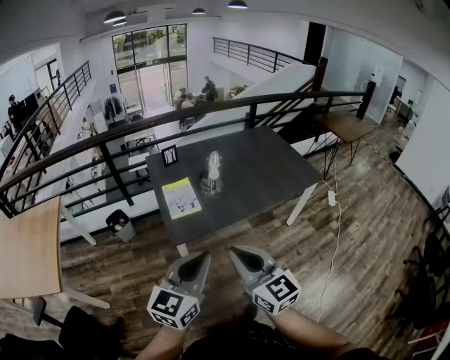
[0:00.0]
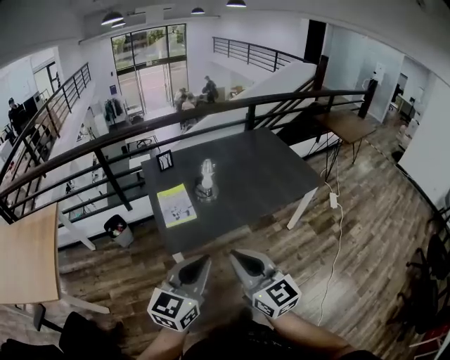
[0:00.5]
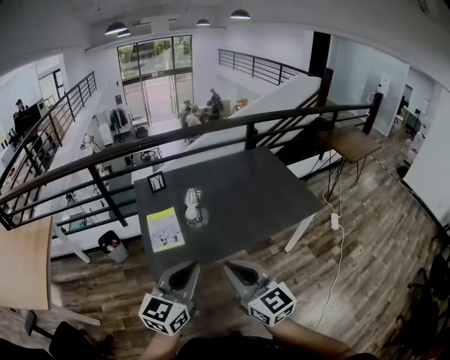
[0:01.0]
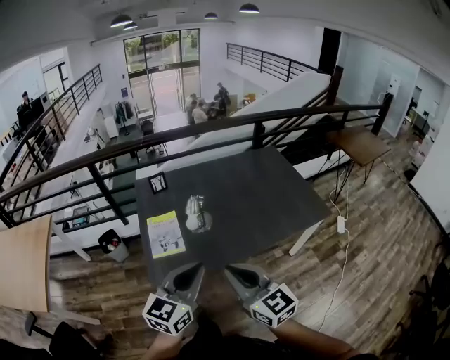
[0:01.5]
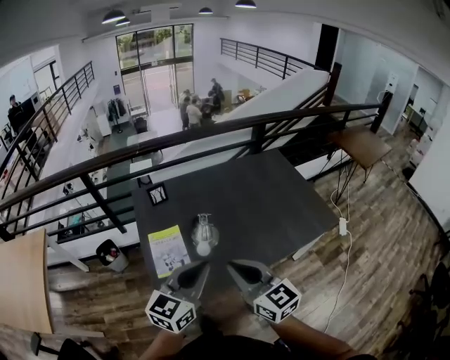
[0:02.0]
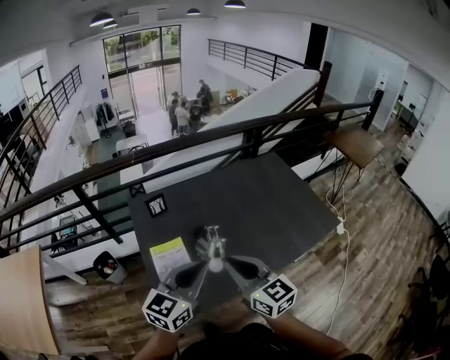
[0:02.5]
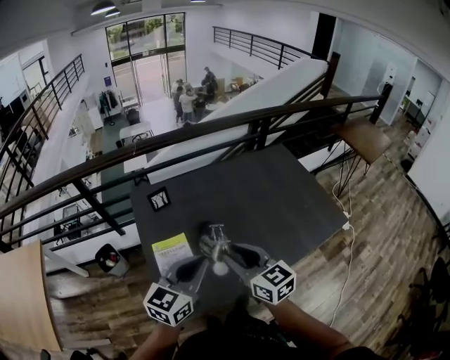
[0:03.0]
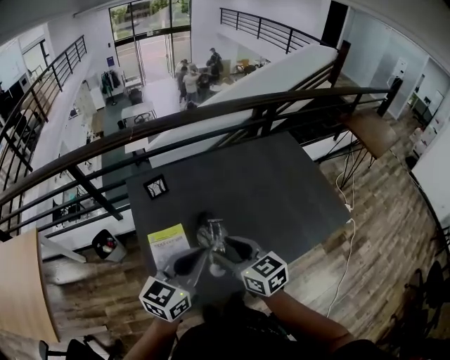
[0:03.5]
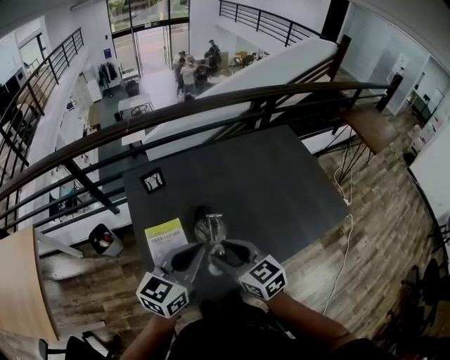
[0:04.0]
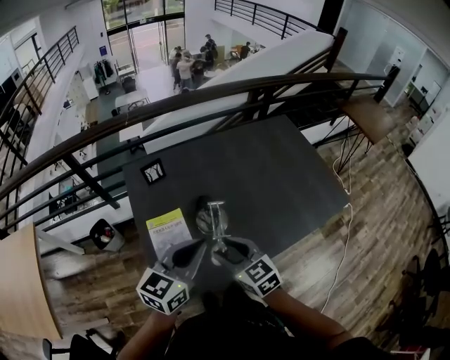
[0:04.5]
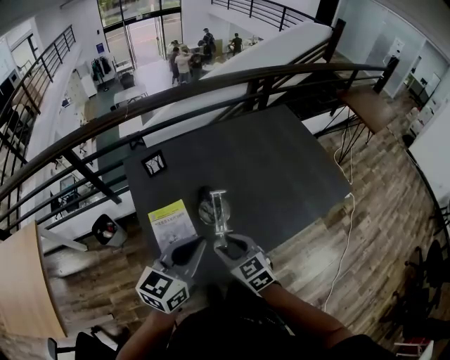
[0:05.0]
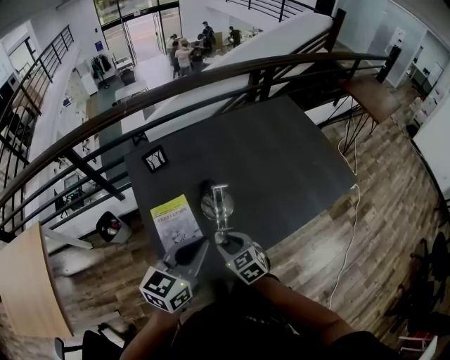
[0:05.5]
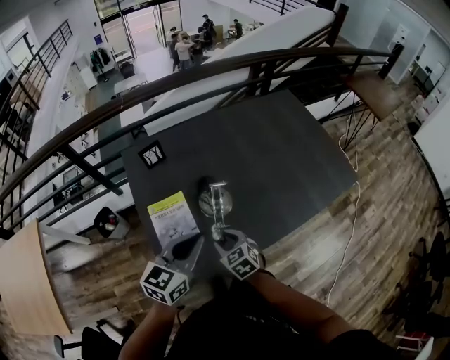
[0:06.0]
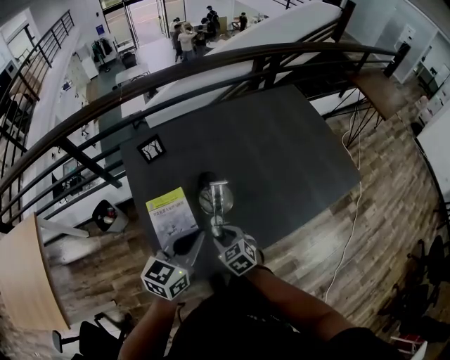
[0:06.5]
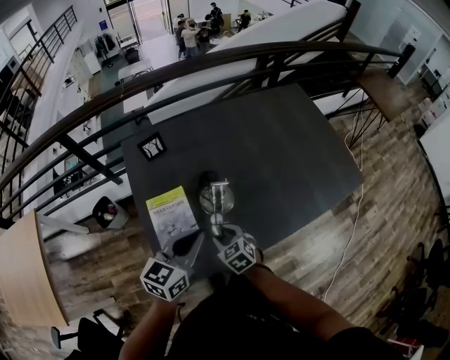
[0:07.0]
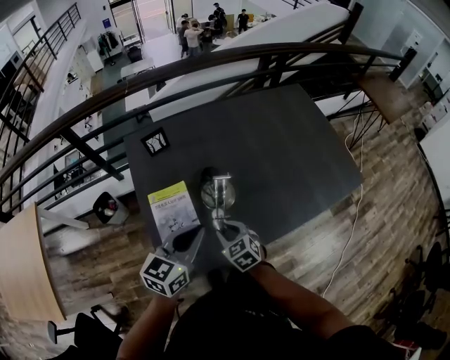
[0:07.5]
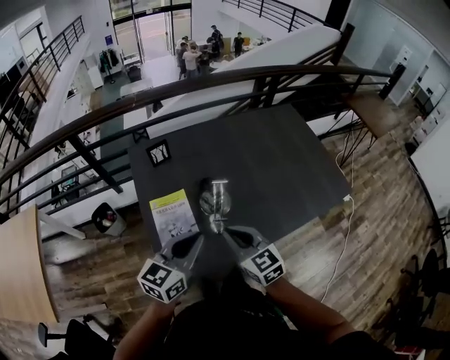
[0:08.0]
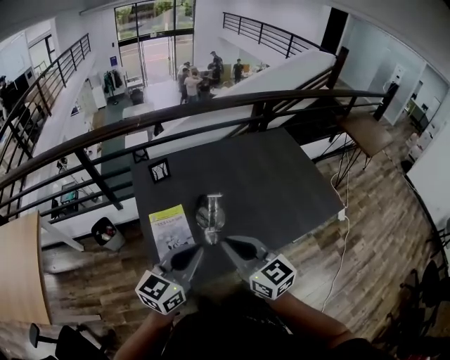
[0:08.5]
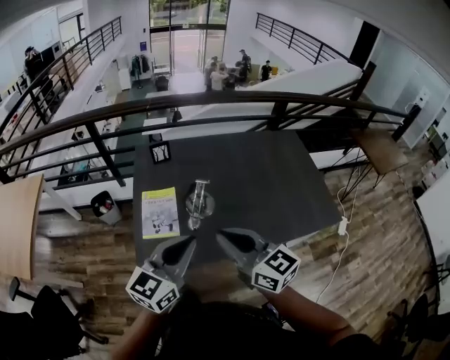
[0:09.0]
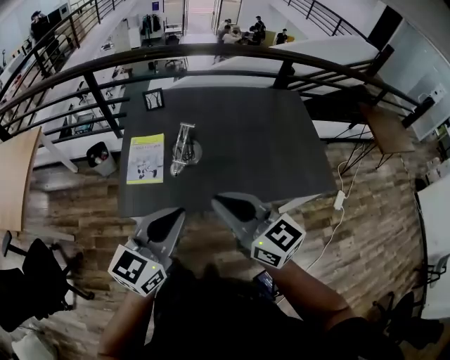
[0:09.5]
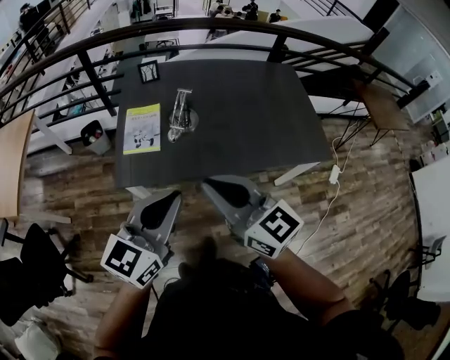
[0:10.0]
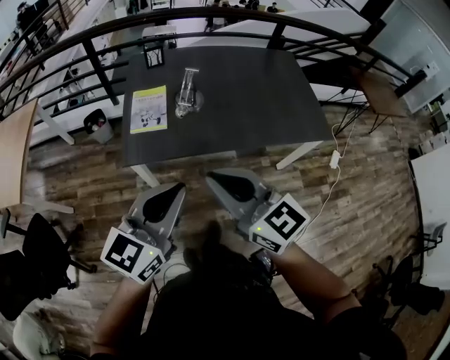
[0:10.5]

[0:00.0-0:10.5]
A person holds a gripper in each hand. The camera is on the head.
0:00.0 to 0:02.0: The grippers both shift forward by approximately 30 cm.
0:02.0 to 0:04.0: The left gripper is displaced forward by approximately 15 cm. Meanwhile the right gripper goes some 20 cm forward, downward and to the left, and opens.
0:04.0 to 0:06.5: The left gripper is displaced downward by roughly 10 cm; the right gripper is displaced downward by about 25 cm, and changes its angle by some 30 degrees.
0:06.5 to 0:08.5: The right gripper goes about 30 cm upward, tips its fingers upward by some 40 degrees, and closes up. The left gripper is displaced upward and backward by some 15 cm.
0:08.5 to 0:10.5: Both grippers travel together backward, some 30 cm.

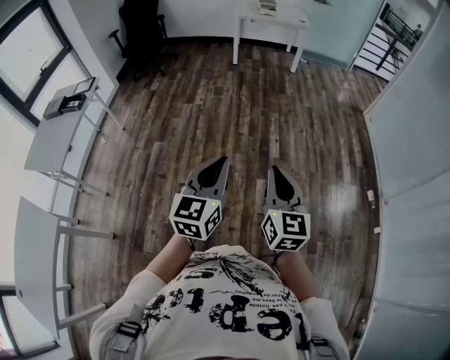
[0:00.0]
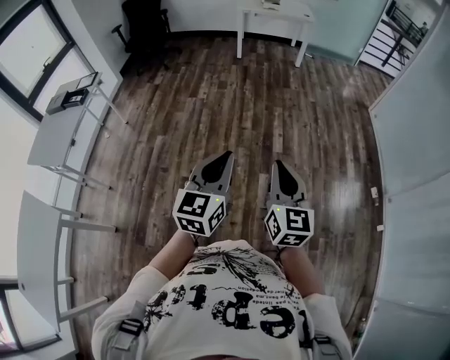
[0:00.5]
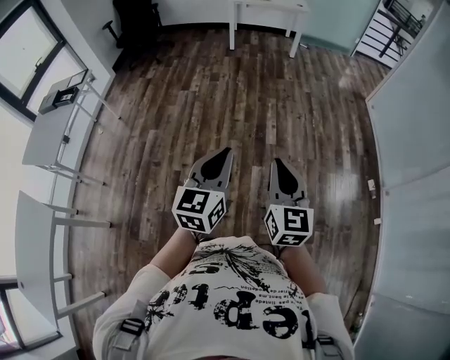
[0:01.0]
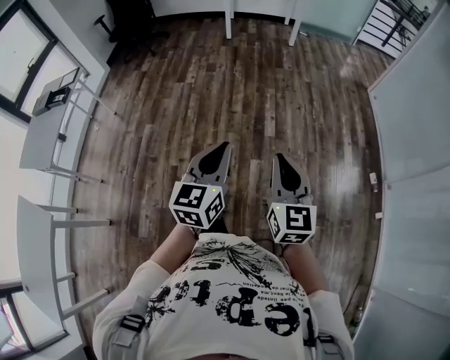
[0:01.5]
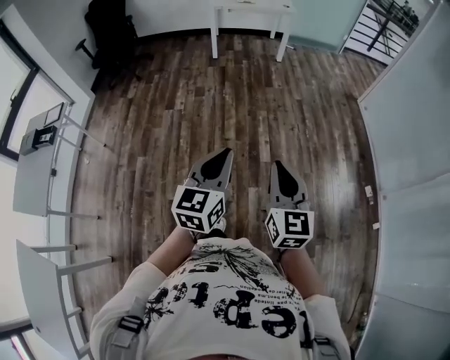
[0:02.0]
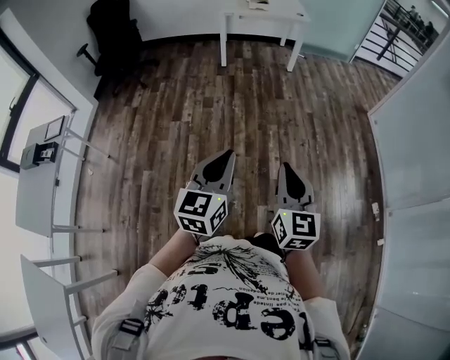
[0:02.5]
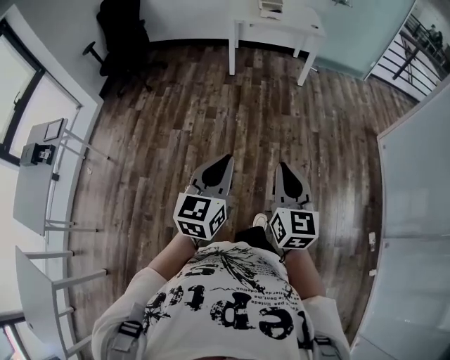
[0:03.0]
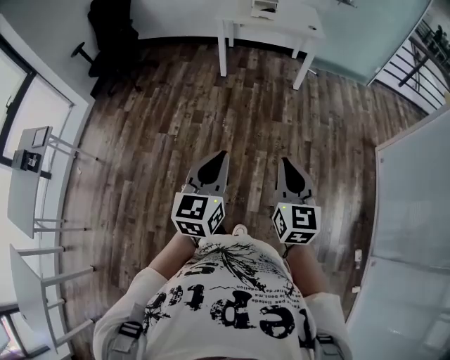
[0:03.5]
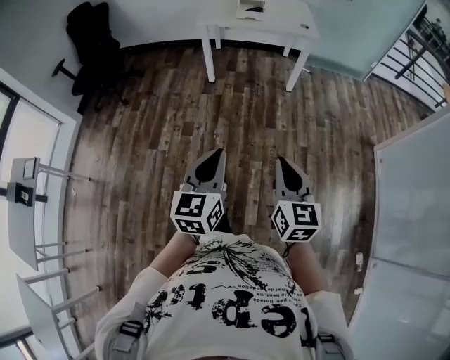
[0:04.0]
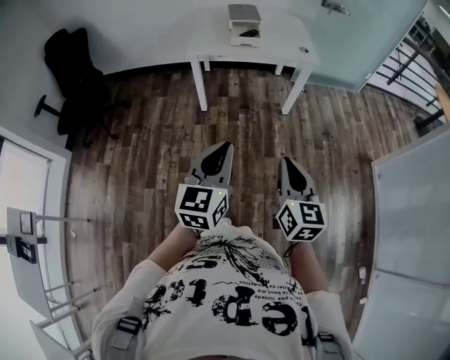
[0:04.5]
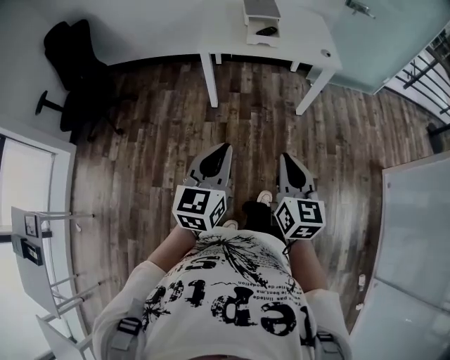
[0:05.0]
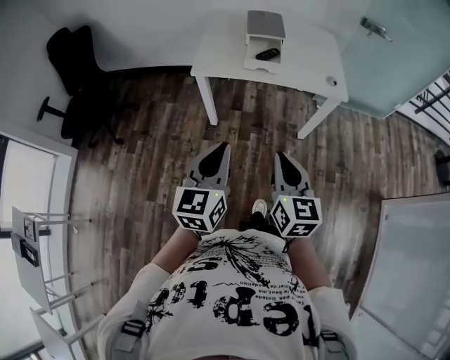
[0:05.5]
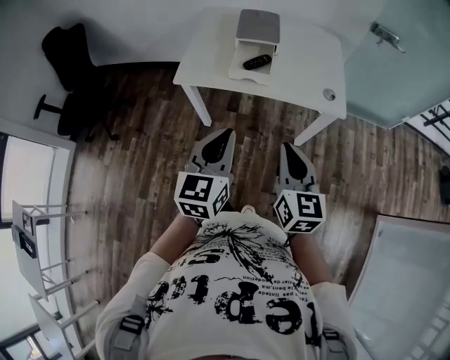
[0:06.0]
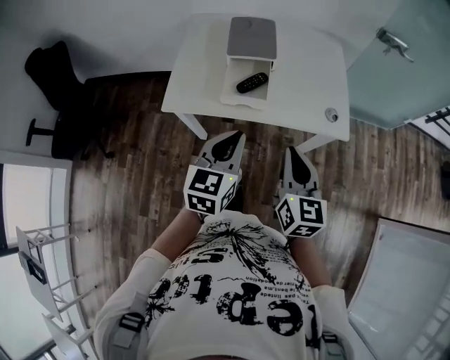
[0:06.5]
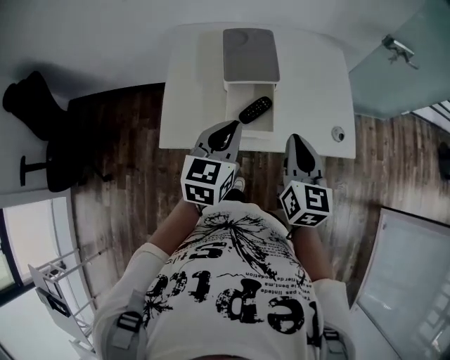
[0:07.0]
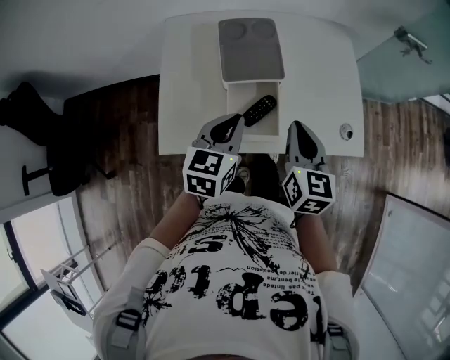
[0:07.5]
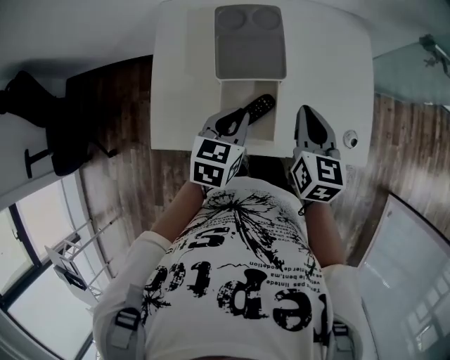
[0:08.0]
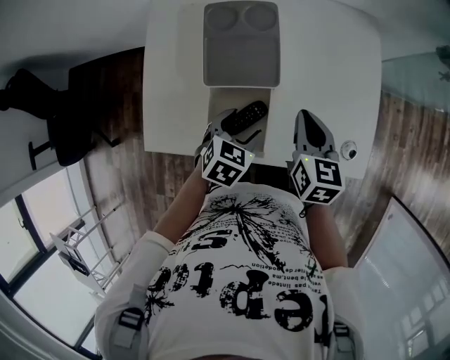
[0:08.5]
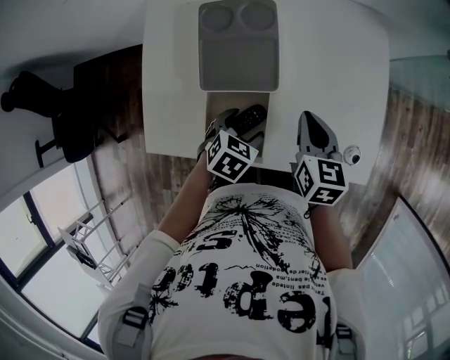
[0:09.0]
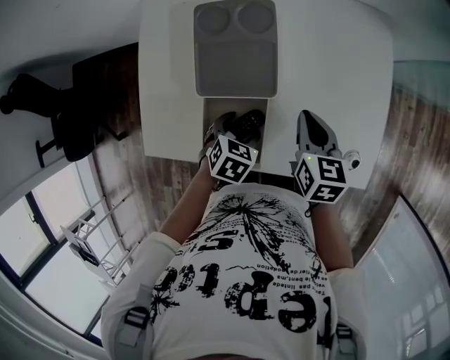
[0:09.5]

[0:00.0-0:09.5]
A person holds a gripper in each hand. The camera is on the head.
0:00.0 to 0:02.0: Both grippers move forward, approximately 20 cm.
0:02.0 to 0:04.0: The pair of grippers is taken forward, approximately 60 cm.
0:04.0 to 0:05.5: Both grippers are carried forward, roughly 50 cm.
0:05.5 to 0:07.5: Both grippers are carried forward, some 50 cm. The left gripper turns by roughly 20 degrees.
0:07.5 to 0:09.5: The left gripper travels downward by roughly 20 cm, tilts its fingers some 40 degrees downward, and opens its fingers. The right gripper travels forward and downward by about 20 cm, and changes its angle by roughly 20 degrees.

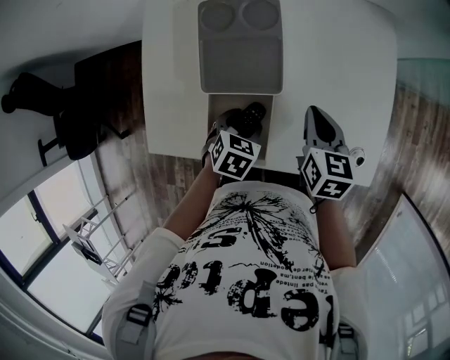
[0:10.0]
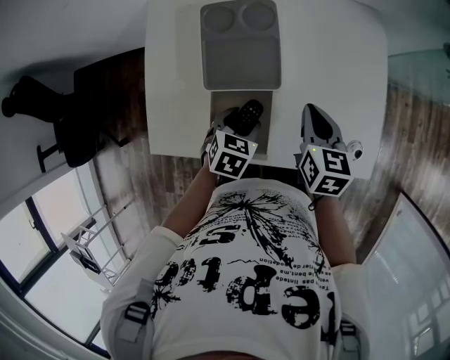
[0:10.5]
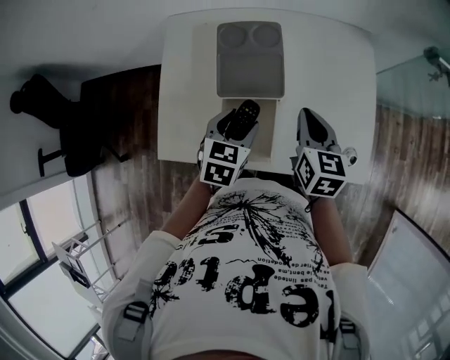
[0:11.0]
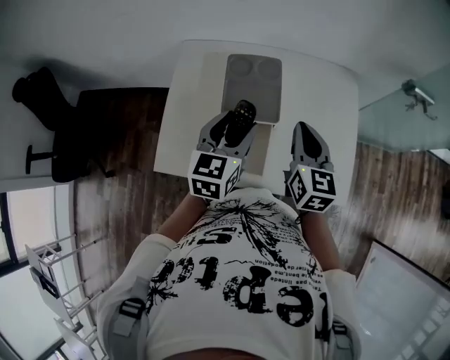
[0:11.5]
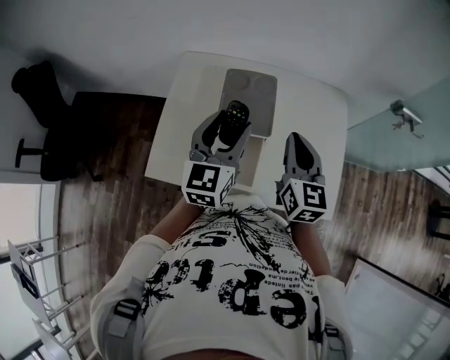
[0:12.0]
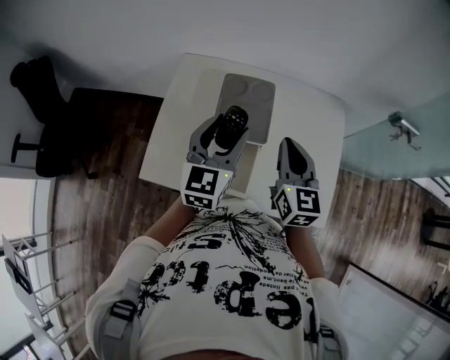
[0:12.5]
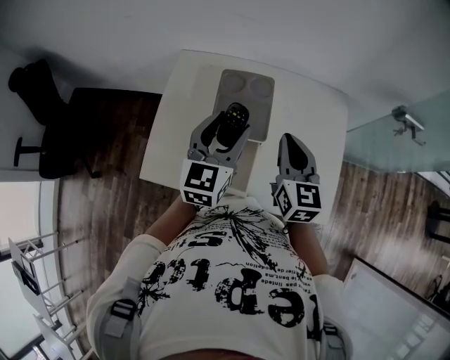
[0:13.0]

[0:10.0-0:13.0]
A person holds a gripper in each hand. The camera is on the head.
0:10.0 to 0:11.5: The left gripper is displaced upward by some 25 cm, and tips its fingers upward by roughly 40 degrees. Meanwhile the right gripper shifts some 15 cm upward, and changes its angle by roughly 30 degrees.
0:11.5 to 0:13.0: The left gripper ends up some 5 cm from where it was.

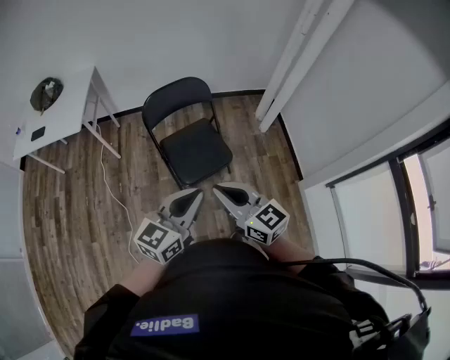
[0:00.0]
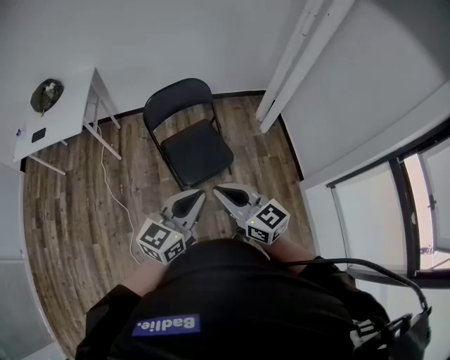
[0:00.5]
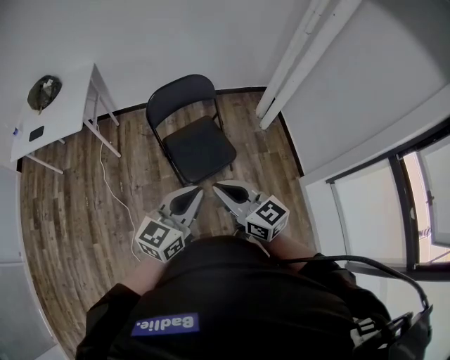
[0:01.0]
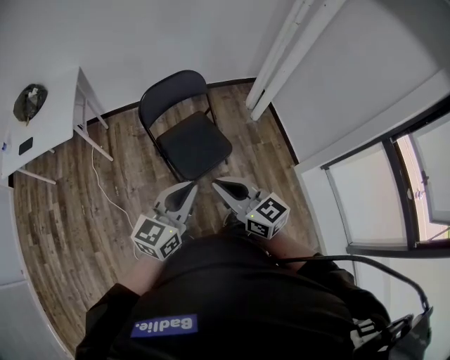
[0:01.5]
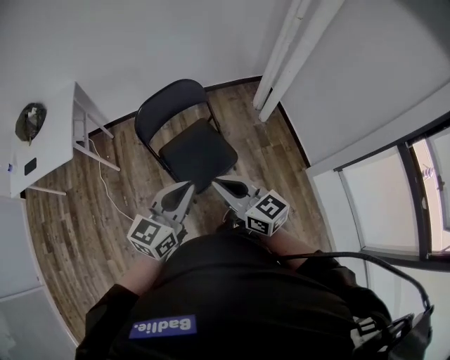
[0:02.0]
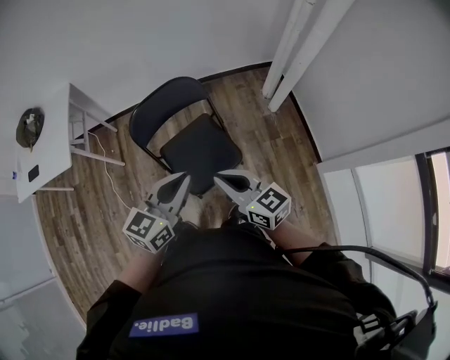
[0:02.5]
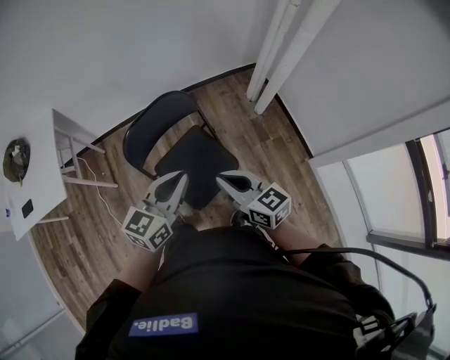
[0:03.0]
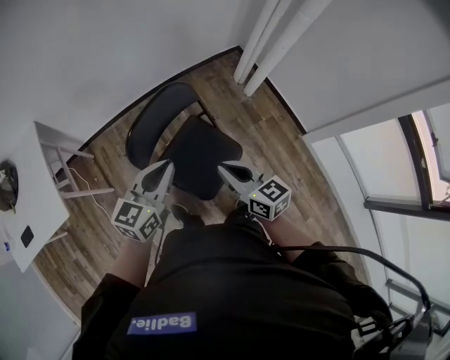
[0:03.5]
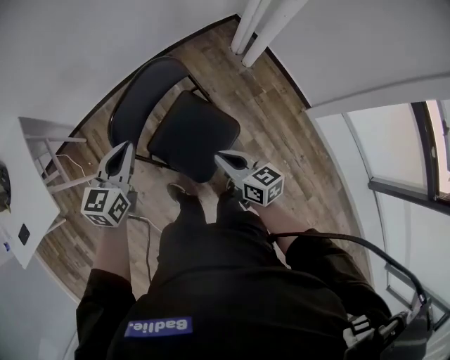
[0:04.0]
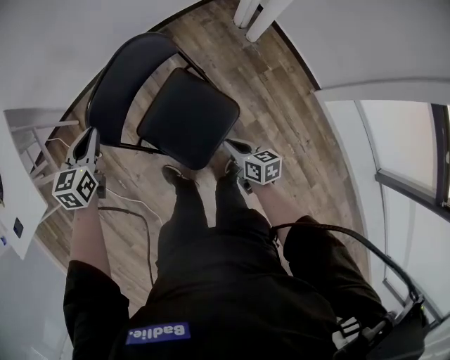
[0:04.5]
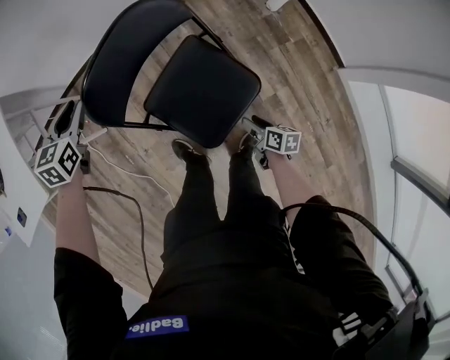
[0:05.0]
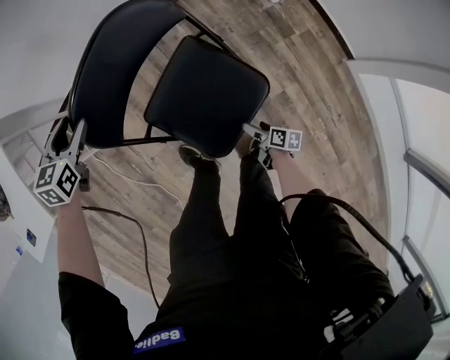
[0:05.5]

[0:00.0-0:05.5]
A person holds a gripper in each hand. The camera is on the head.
0:00.0 to 0:02.0: The grippers both shift forward by about 15 cm.
0:02.0 to 0:03.5: The right gripper moves forward, some 20 cm, and turns by approximately 20 degrees, while the left gripper shifts roughly 30 cm forward and to the left.
0:03.5 to 0:05.5: The right gripper travels downward by about 60 cm, rolls clockwise, seen from behind, by some 50 degrees, and opens. Meanwhile the left gripper is displaced downward, forward and to the left by approximately 40 cm, points its fingers roughly 30 degrees further downward, and opens its fingers.
